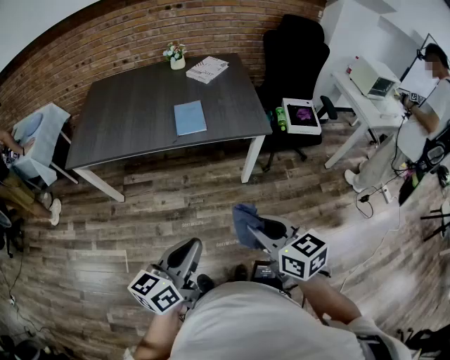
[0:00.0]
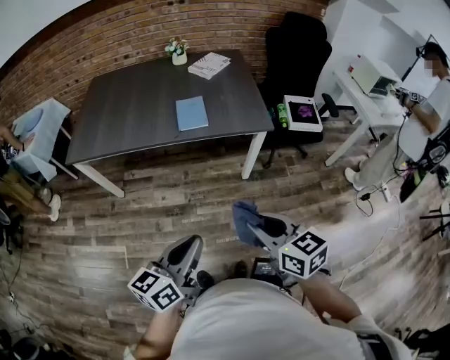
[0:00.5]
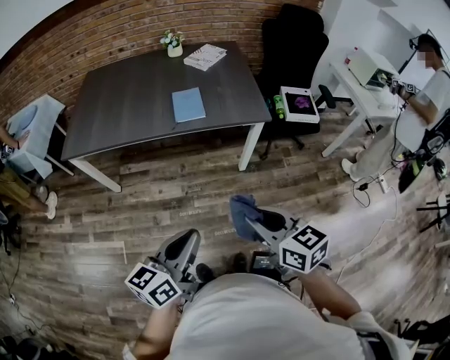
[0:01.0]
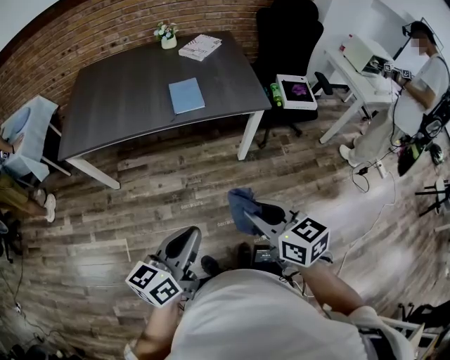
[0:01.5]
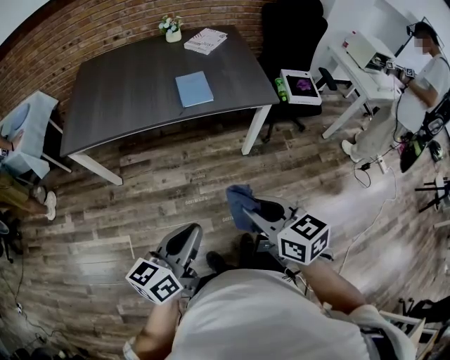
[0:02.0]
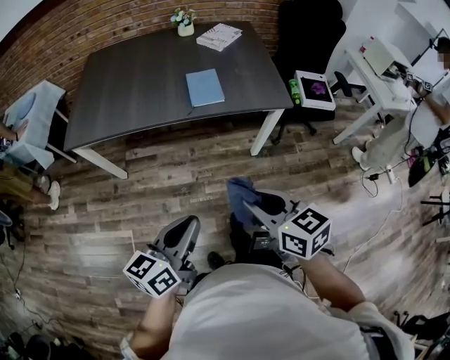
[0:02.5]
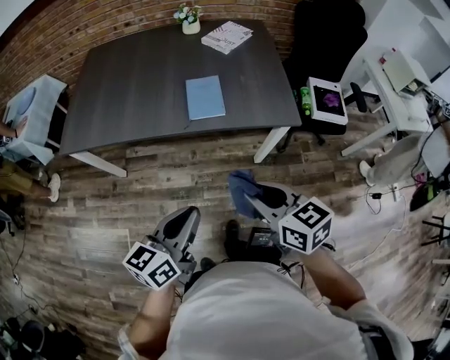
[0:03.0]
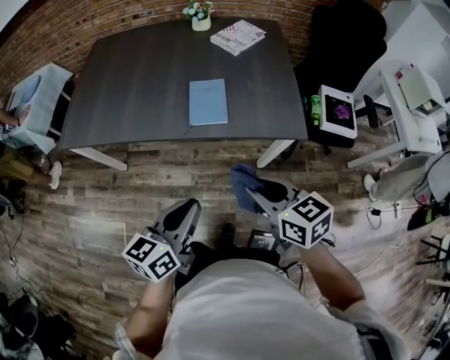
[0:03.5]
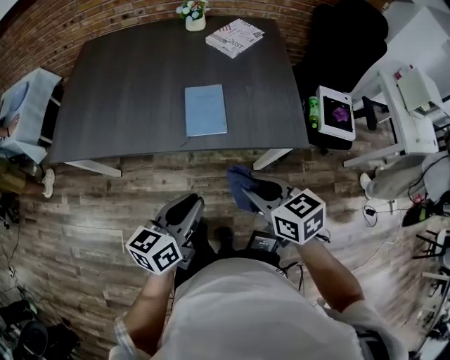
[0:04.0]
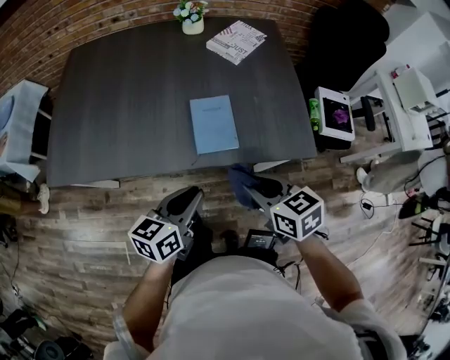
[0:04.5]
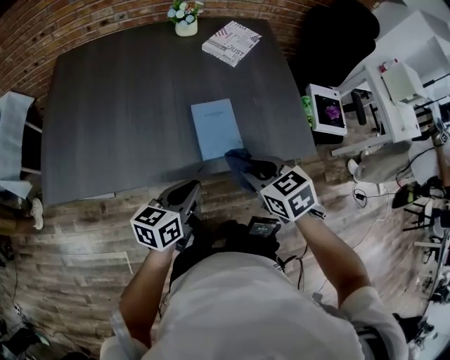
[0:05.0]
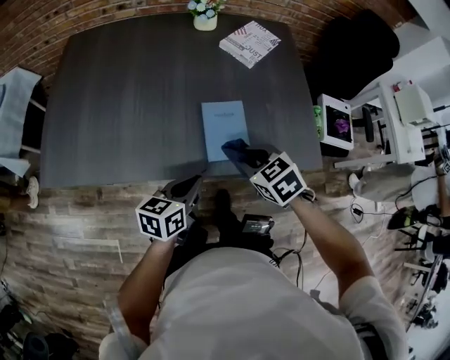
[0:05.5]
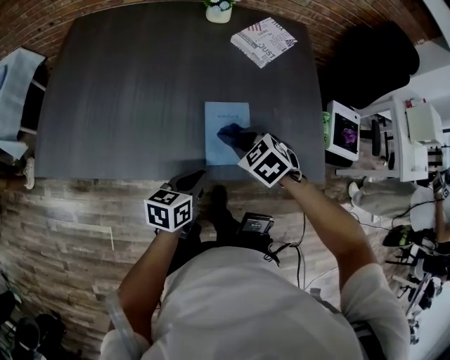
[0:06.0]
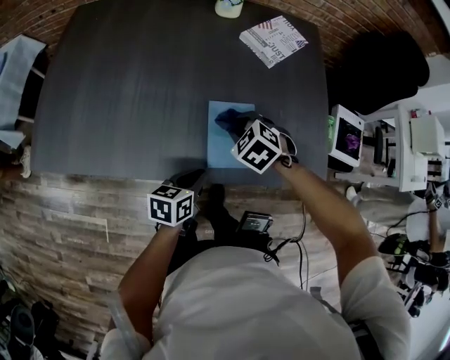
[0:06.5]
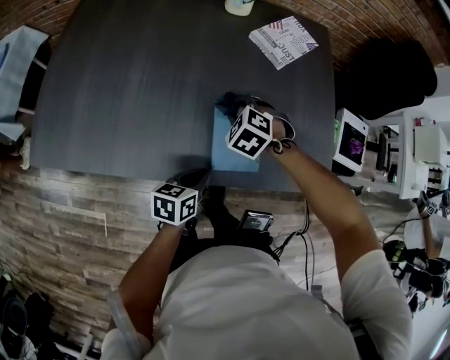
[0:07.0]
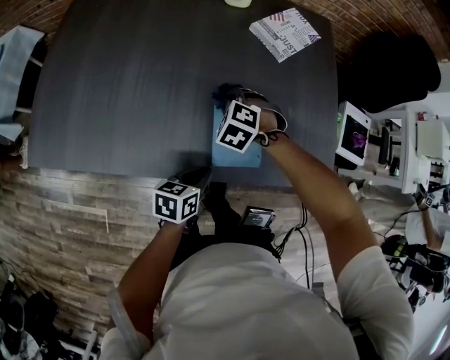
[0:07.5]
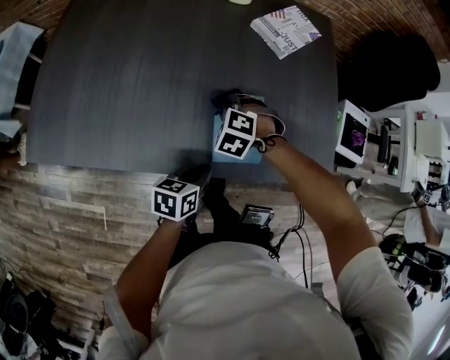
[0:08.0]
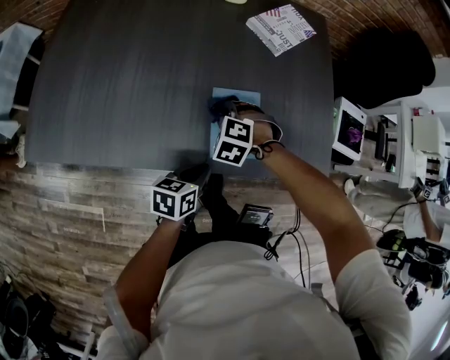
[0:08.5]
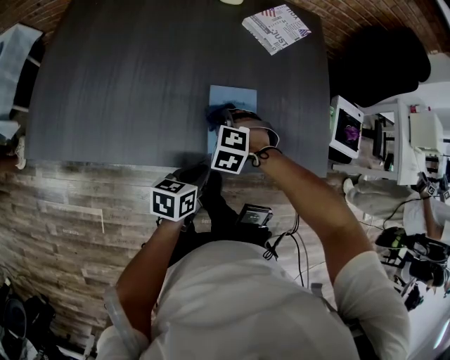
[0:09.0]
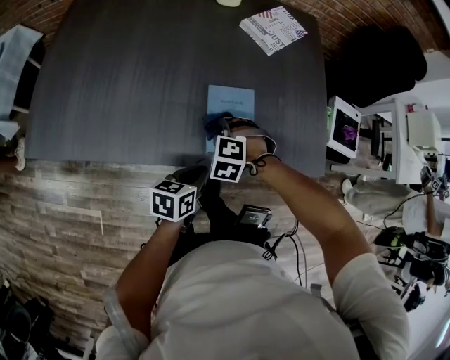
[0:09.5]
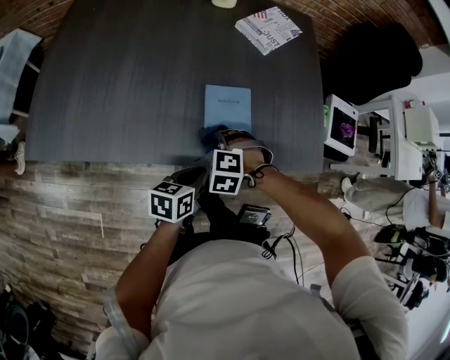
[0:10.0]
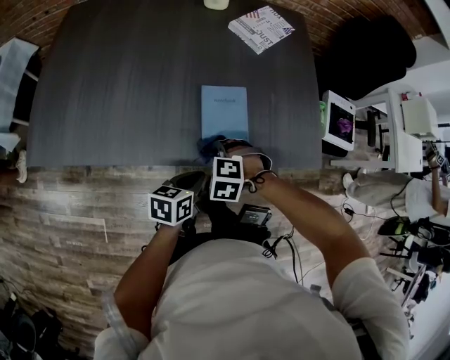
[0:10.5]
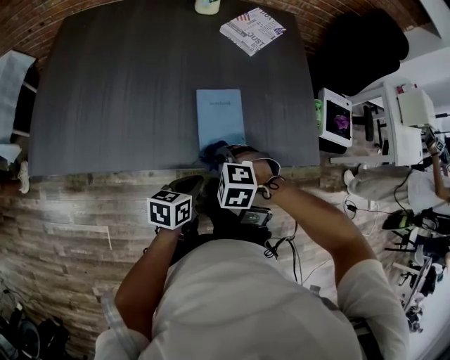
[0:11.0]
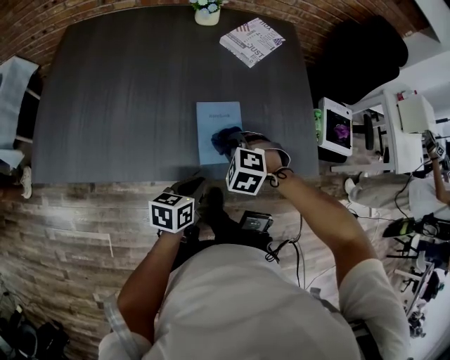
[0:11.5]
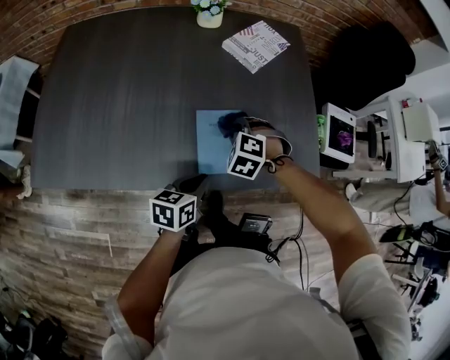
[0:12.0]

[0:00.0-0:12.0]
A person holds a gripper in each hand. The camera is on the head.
0:00.0 to 0:02.0: The grippers both shift to the left by approximately 10 cm.
0:02.0 to 0:04.0: Both grippers travel together forward, roughly 30 cm.
0:04.0 to 0:06.0: The two grippers go some 25 cm forward and downward. The right gripper rotates some 40 degrees.
0:06.0 to 0:08.0: The left gripper moves downward, about 5 cm; the right gripper moves to the left, downward and forward, approximately 15 cm, and swivels approximately 30 degrees.
0:08.0 to 0:10.0: The right gripper is displaced backward by approximately 15 cm.
0:10.0 to 0:12.0: The right gripper changes place by some 15 cm, while the left gripper shifts by roughly 5 cm.

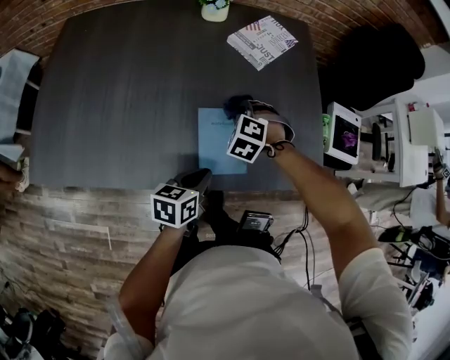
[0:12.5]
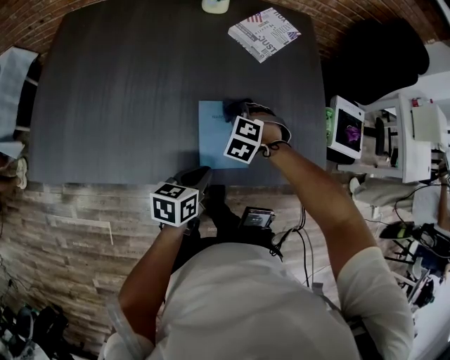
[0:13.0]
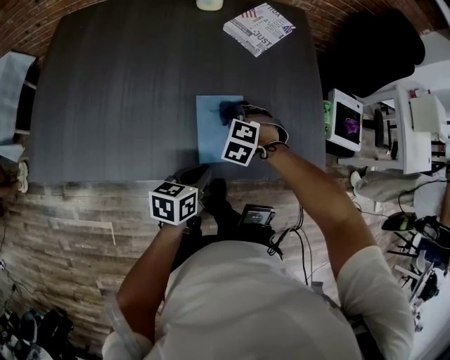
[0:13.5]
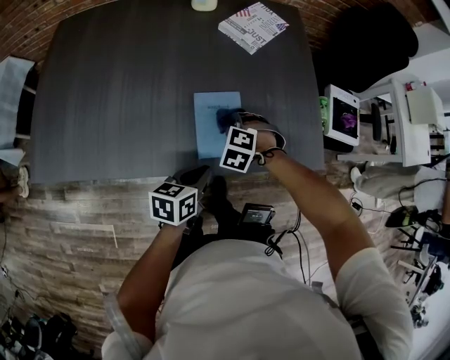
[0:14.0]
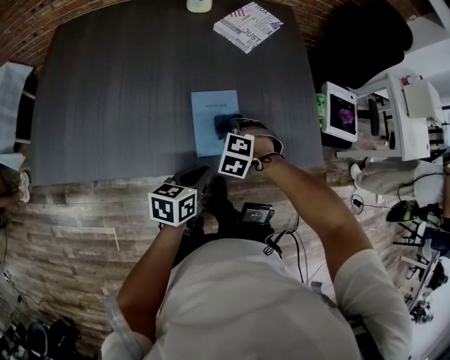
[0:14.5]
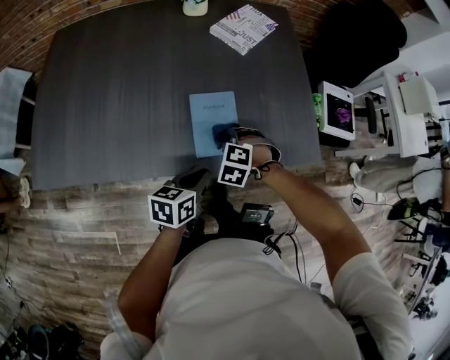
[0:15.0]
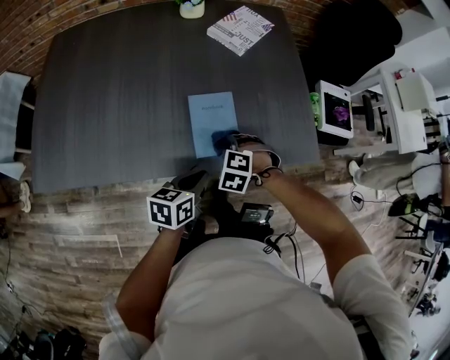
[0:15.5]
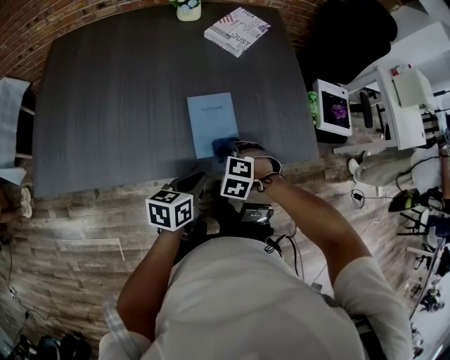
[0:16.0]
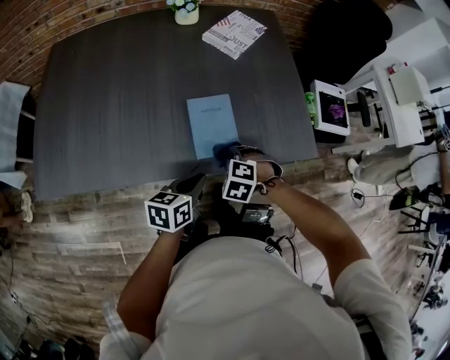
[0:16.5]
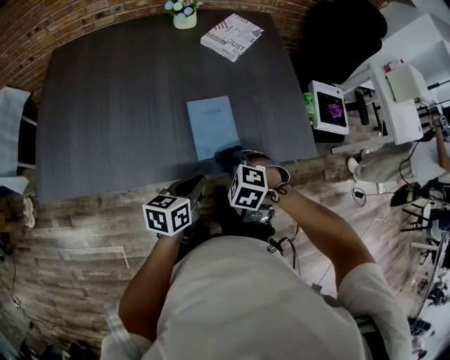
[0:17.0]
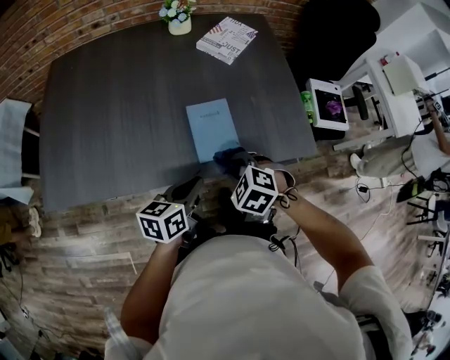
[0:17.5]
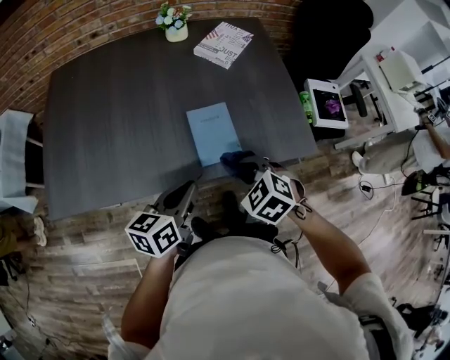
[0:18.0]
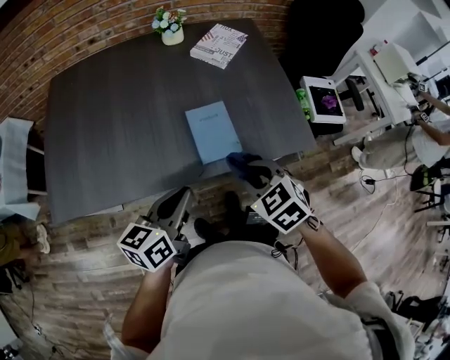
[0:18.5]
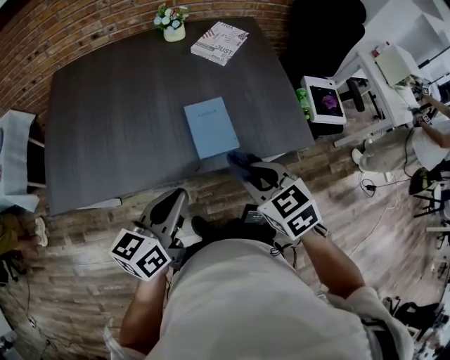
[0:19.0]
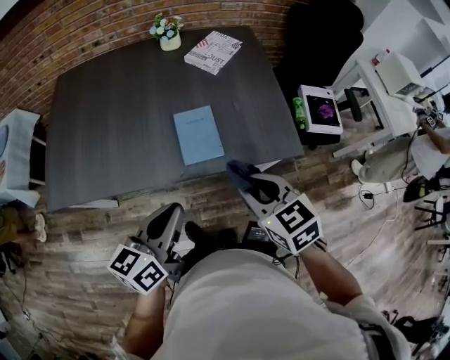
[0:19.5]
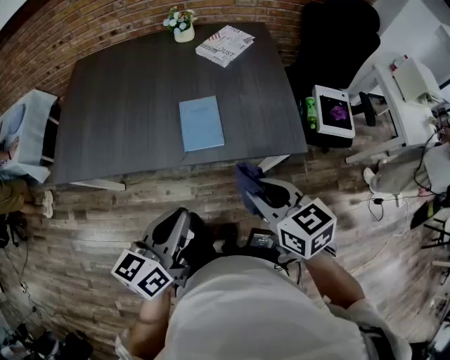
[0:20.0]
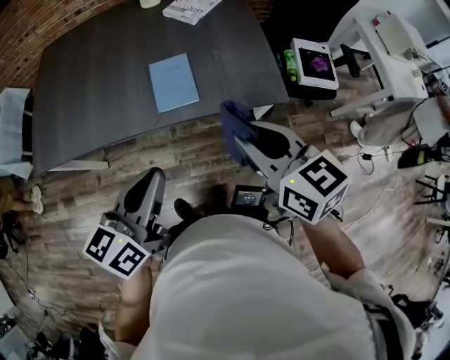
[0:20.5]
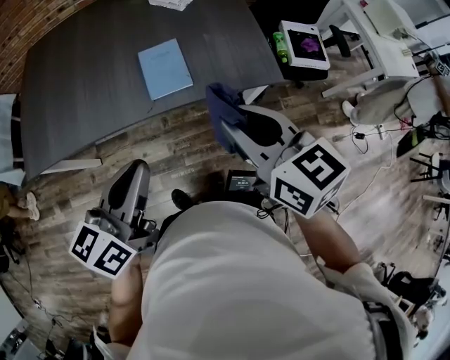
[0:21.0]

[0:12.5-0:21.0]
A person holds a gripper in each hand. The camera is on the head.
0:12.5 to 0:14.5: The right gripper heads backward, covering roughly 10 cm.
0:14.5 to 0:16.5: The right gripper heads backward, covering about 10 cm.
0:16.5 to 0:19.0: The left gripper moves upward and backward, about 20 cm, and turns by roughly 20 degrees. The right gripper is displaced upward by about 20 cm, and rolls clockwise, seen from behind, by roughly 40 degrees.
0:19.0 to 0:21.0: The left gripper shifts some 10 cm backward, to the right and upward. The right gripper heads upward, to the right and backward, covering approximately 15 cm, and swivels approximately 30 degrees.

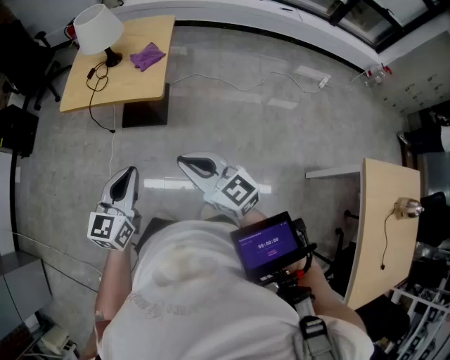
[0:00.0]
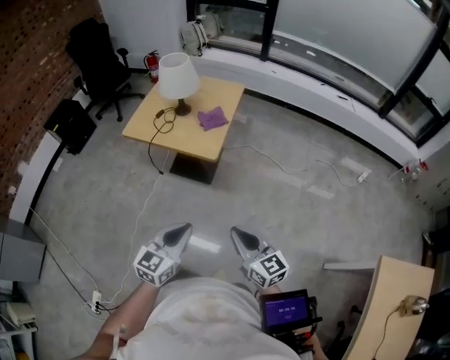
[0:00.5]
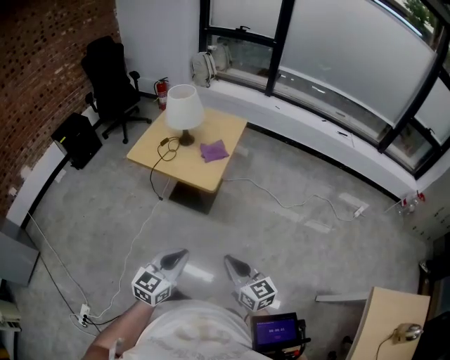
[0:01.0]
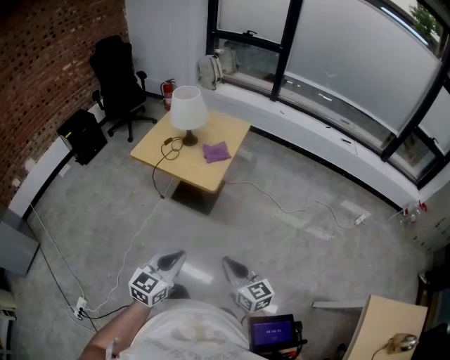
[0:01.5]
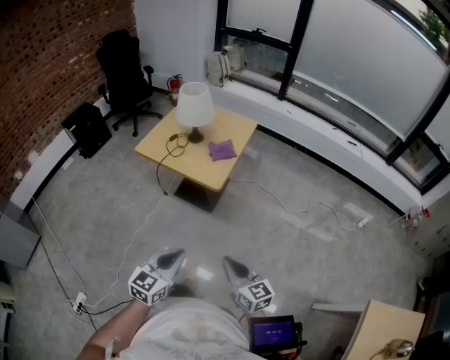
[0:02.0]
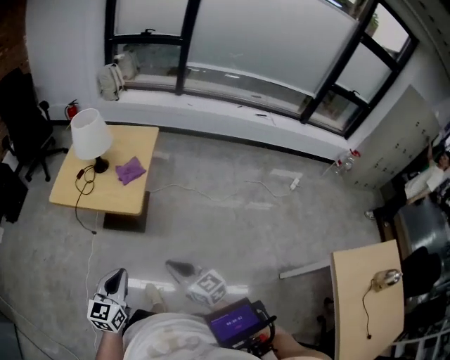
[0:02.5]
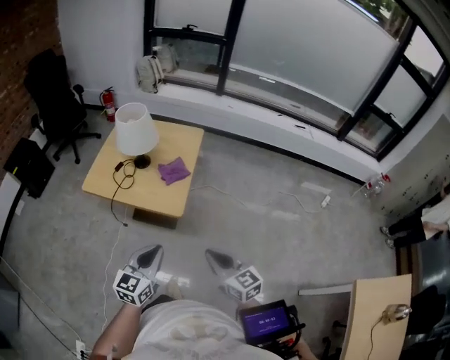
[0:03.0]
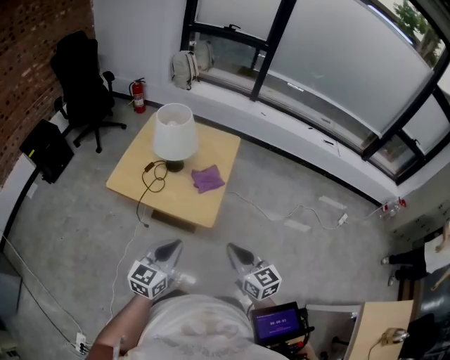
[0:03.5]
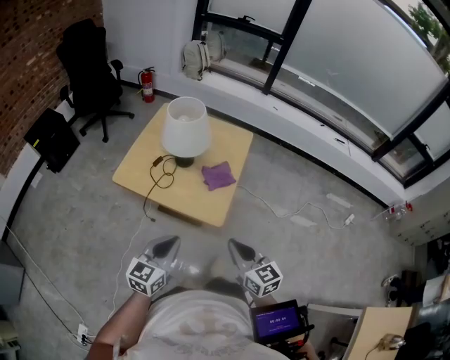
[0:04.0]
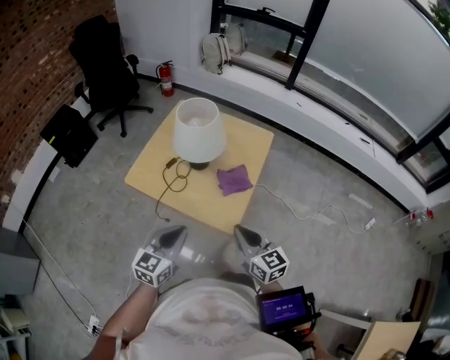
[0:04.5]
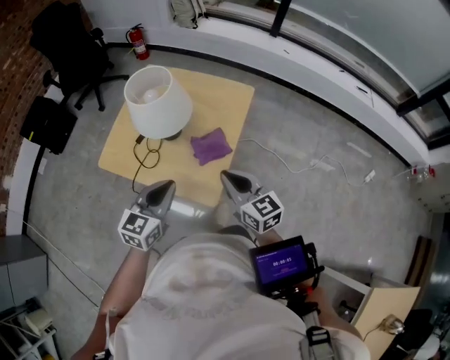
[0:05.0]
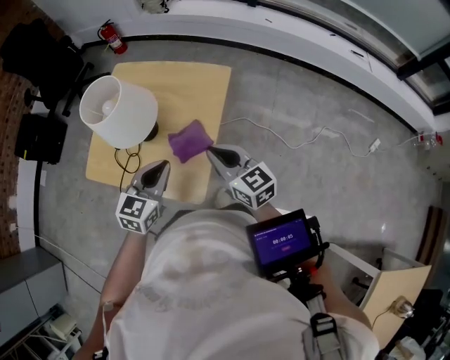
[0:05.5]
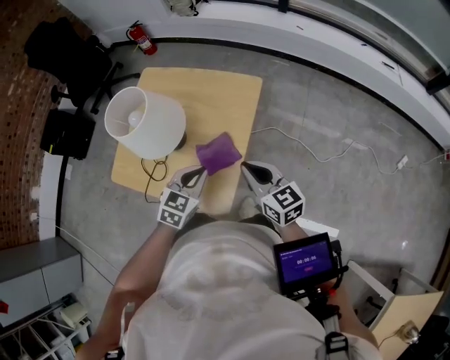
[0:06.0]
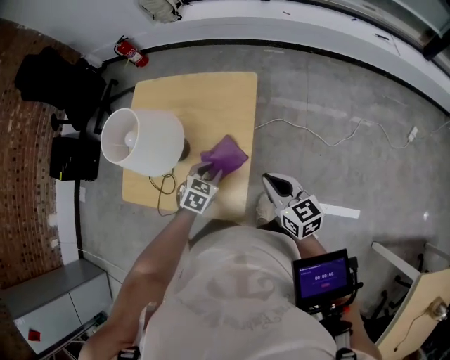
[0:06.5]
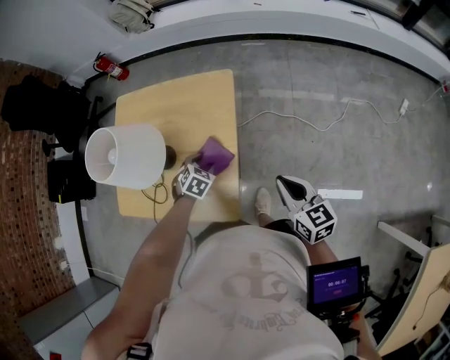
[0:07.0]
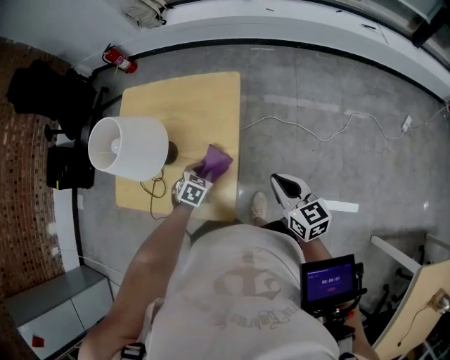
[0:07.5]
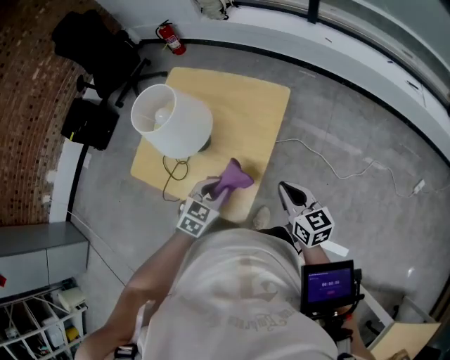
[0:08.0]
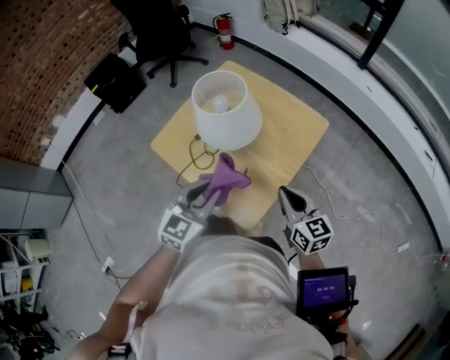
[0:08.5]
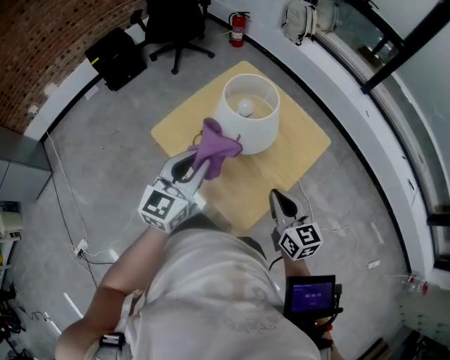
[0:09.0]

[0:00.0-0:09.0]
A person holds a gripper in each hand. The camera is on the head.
0:00.0 to 0:02.0: The right gripper heads to the right and downward, covering some 10 cm. The left gripper moves backward and to the right, roughly 10 cm.
0:02.0 to 0:04.5: The two grippers go roughly 35 cm forward.
0:04.5 to 0:07.0: The right gripper is displaced to the right, forward and downward by some 25 cm, and turns by approximately 20 degrees. The left gripper is displaced forward, downward and to the right by about 40 cm, angles its fingers downward, by roughly 50 degrees, and opens its fingers.
0:07.0 to 0:09.0: The left gripper heads upward, covering roughly 30 cm, angles its fingers upward, by some 60 degrees, and closes its fingers. The right gripper changes place by about 25 cm, and rotates some 30 degrees.
